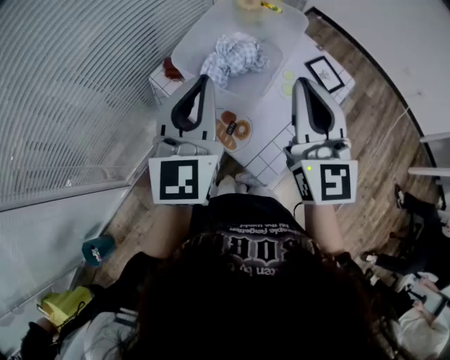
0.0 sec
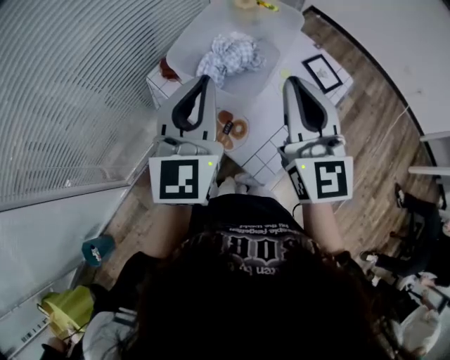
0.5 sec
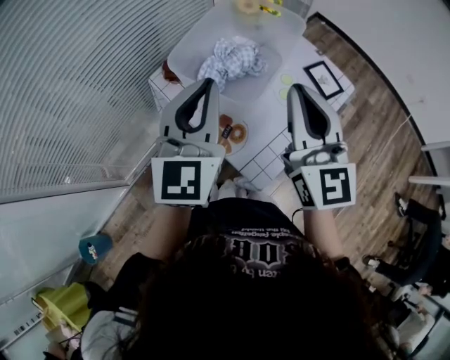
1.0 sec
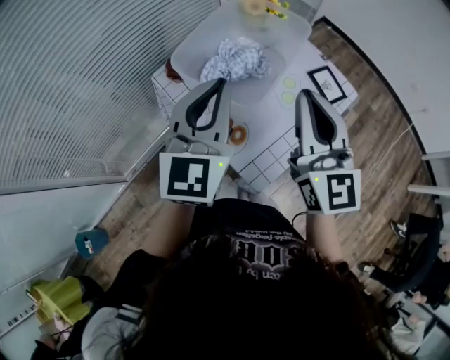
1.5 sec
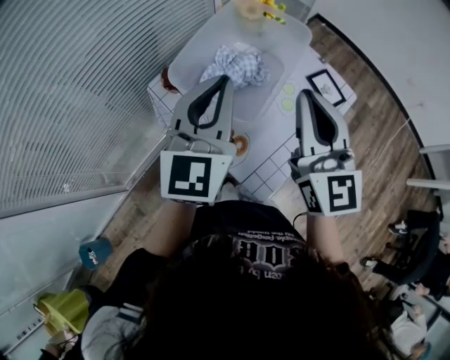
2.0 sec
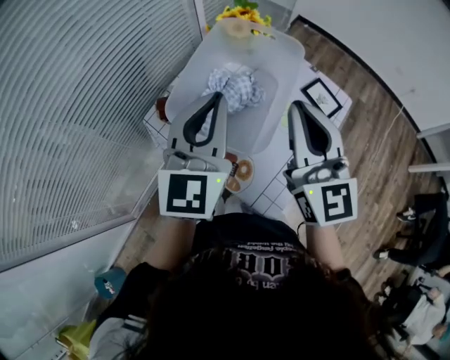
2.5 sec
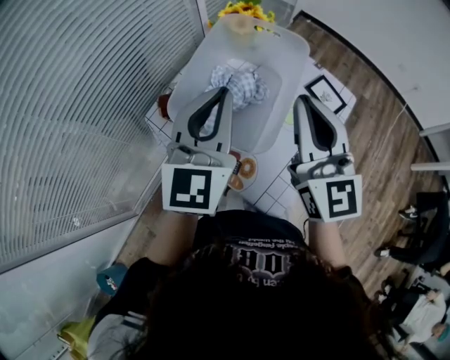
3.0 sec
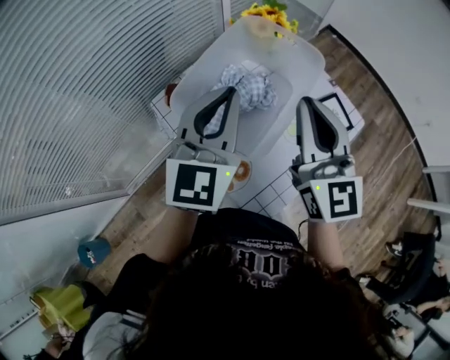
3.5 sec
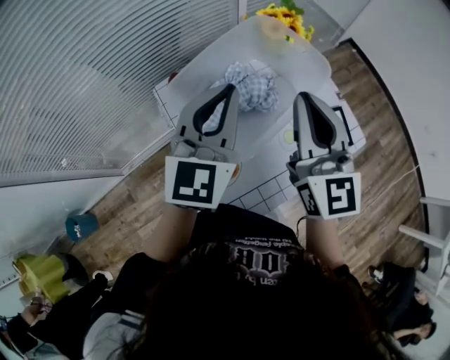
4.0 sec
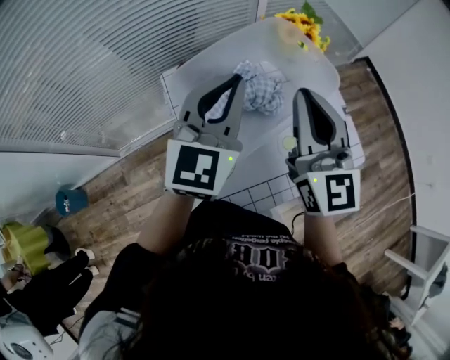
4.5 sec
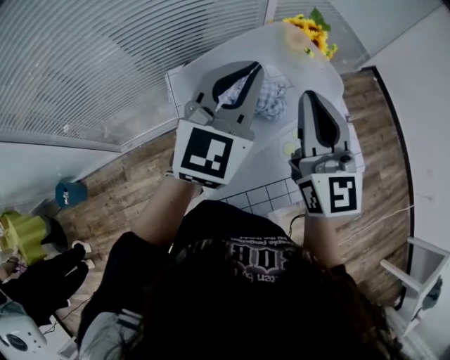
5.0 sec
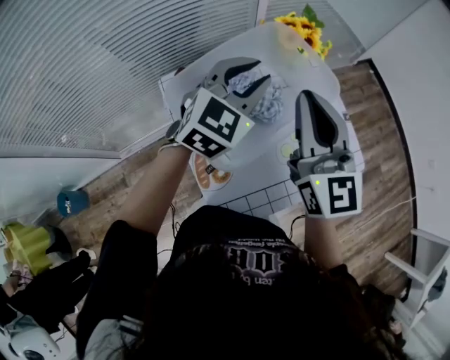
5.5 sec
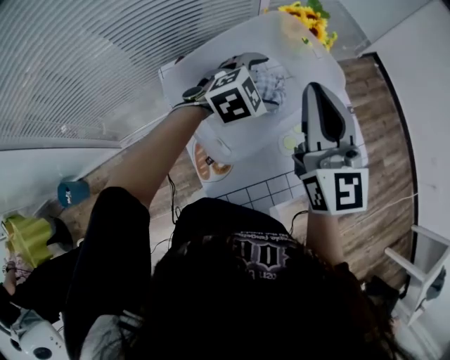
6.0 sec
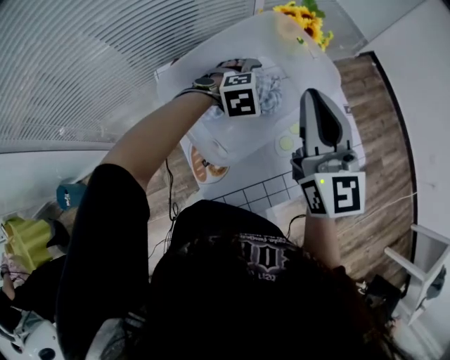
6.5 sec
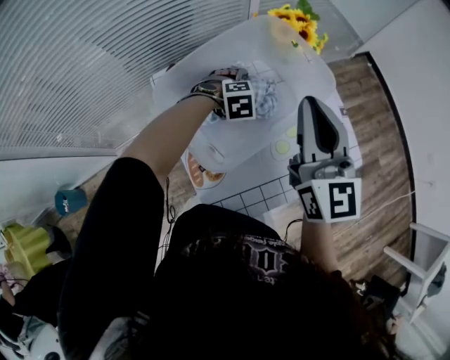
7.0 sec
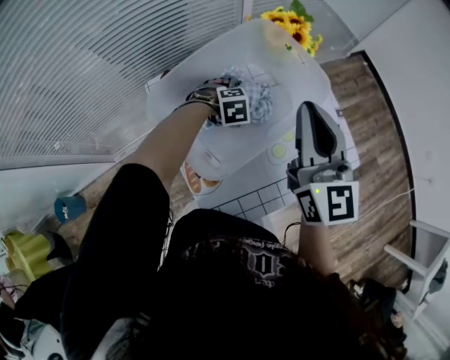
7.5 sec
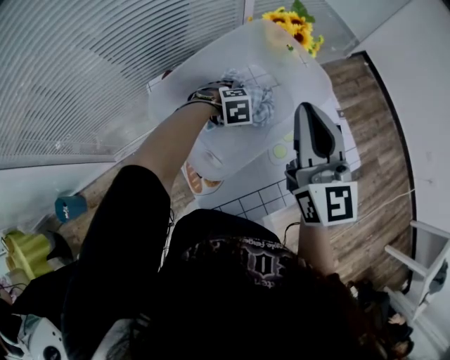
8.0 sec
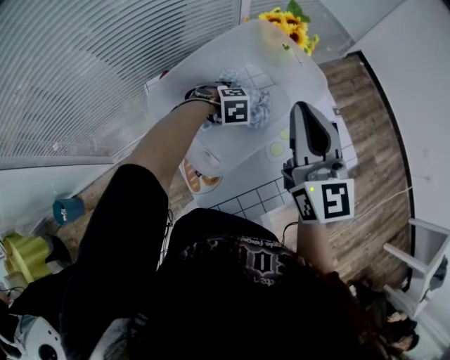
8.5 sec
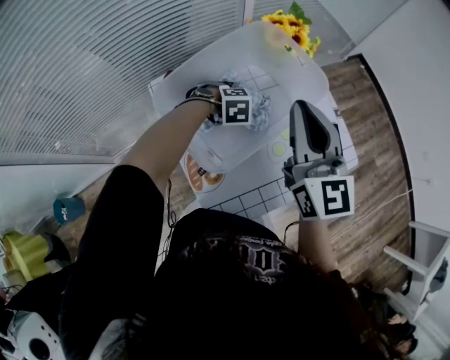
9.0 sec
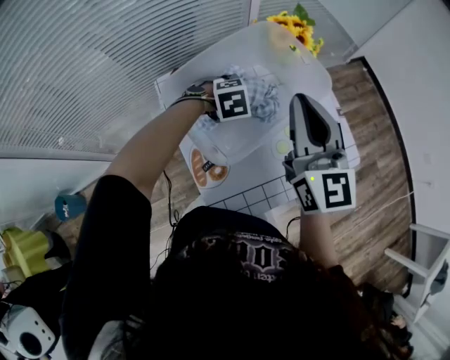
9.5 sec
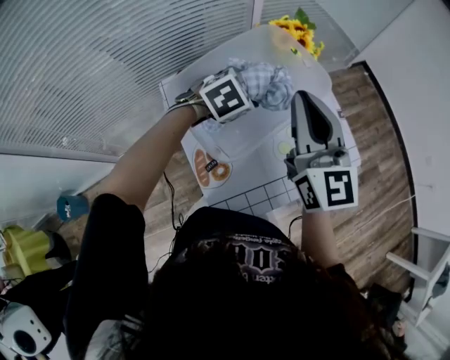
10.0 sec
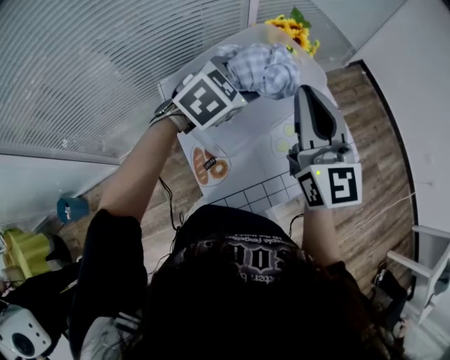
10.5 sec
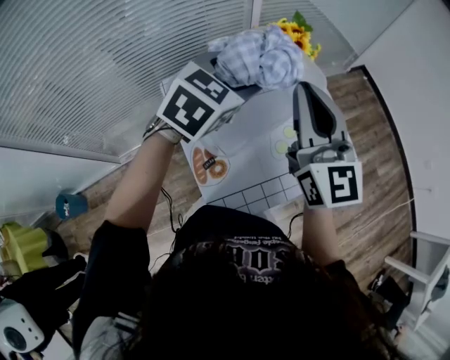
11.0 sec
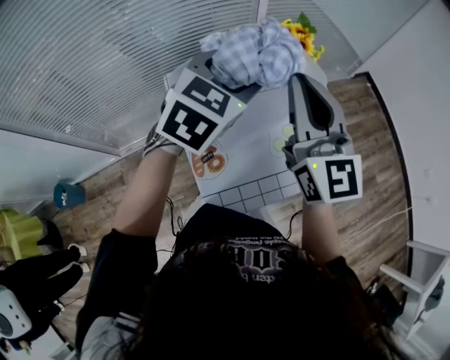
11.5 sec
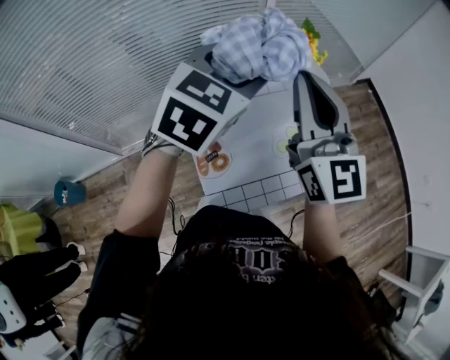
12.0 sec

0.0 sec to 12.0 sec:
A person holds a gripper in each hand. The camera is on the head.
0.0 sec to 2.0 sec: The left gripper moves approximately 5 cm.
2.0 sec to 4.0 sec: The grippers both shift forward by approximately 10 cm.
4.0 sec to 6.0 sec: The left gripper goes some 20 cm downward, forward and to the right, angles its fingers downward, by about 40 degrees, and opens.
6.0 sec to 8.0 sec: The left gripper moves downward, about 15 cm, and angles its fingers downward, by approximately 30 degrees.
8.0 sec to 10.0 sec: The left gripper is displaced upward by roughly 15 cm, and turns by approximately 30 degrees.
10.0 sec to 12.0 sec: The left gripper goes approximately 20 cm upward, and angles its fingers upward, by some 30 degrees. The right gripper shifts about 5 cm upward.

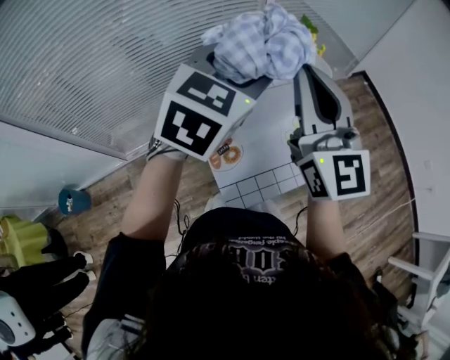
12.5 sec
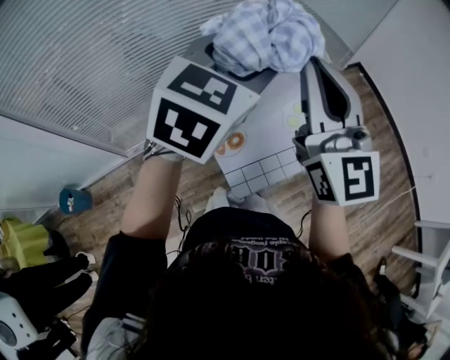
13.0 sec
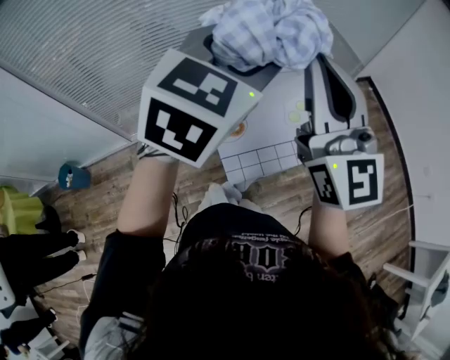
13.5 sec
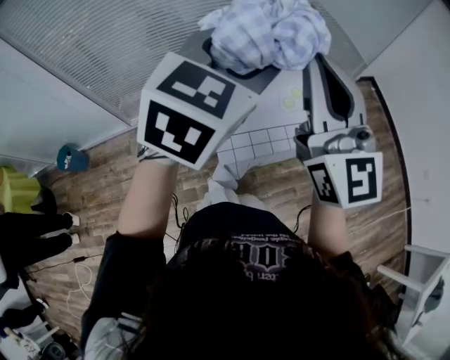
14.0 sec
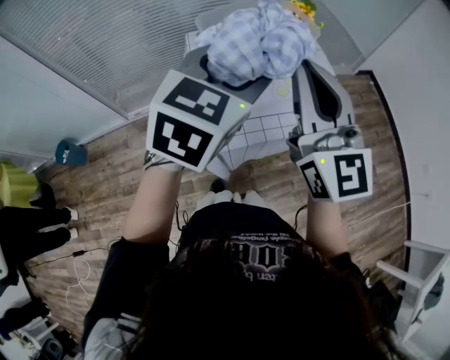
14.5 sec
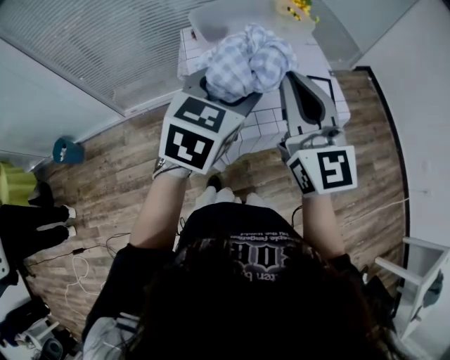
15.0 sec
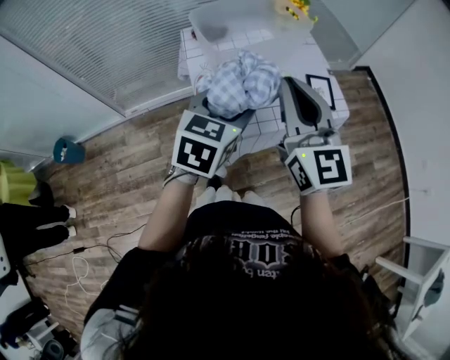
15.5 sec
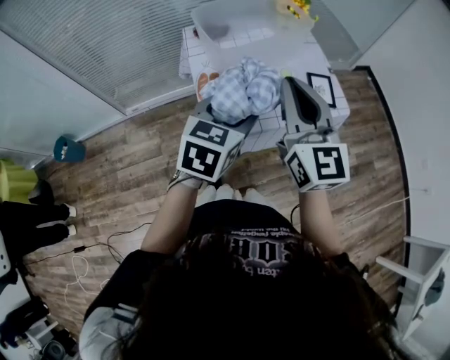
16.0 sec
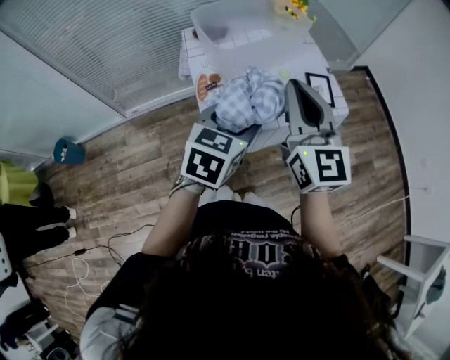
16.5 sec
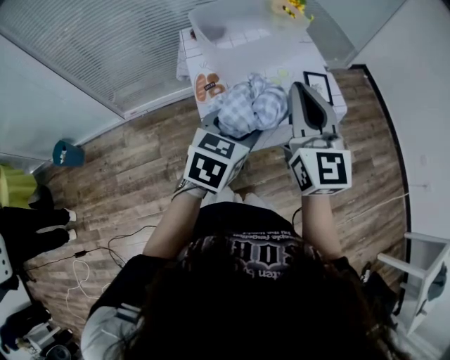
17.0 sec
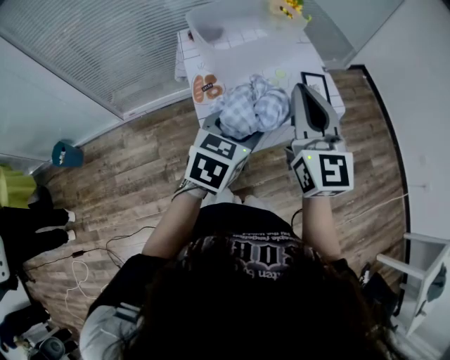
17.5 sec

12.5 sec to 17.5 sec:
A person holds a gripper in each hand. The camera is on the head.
12.5 sec to 15.0 sec: The grippers both shift backward by about 20 cm.
15.0 sec to 17.5 sec: The right gripper shifts some 5 cm to the right. The left gripper travels downward and backward by roughly 10 cm.

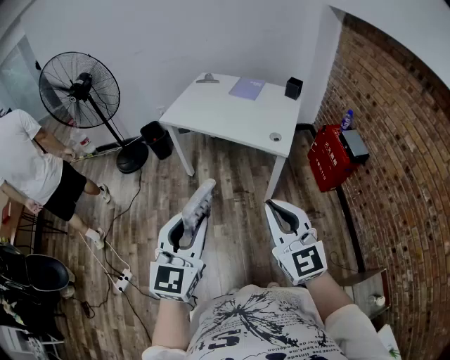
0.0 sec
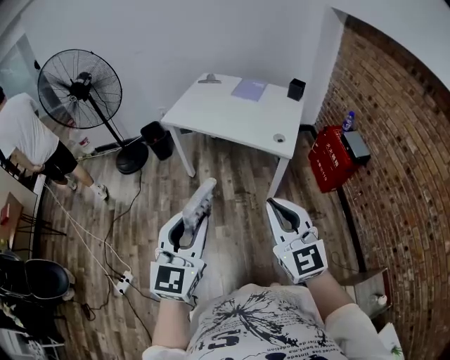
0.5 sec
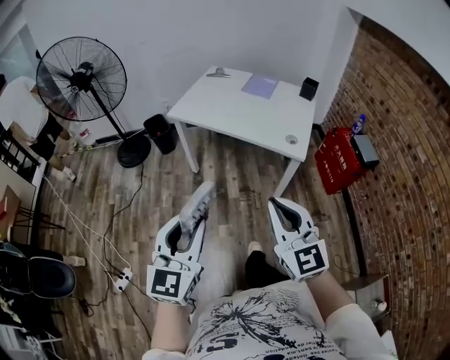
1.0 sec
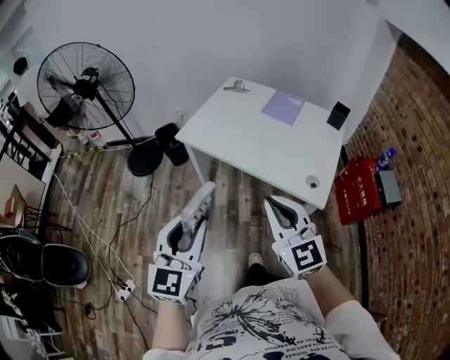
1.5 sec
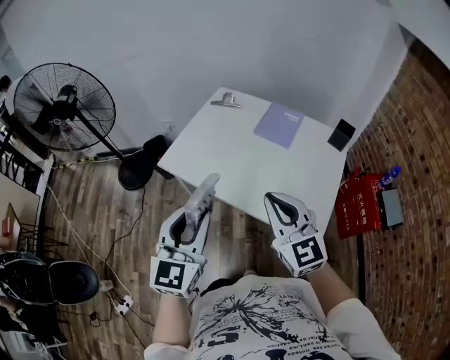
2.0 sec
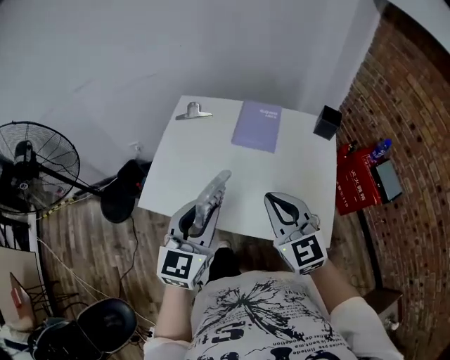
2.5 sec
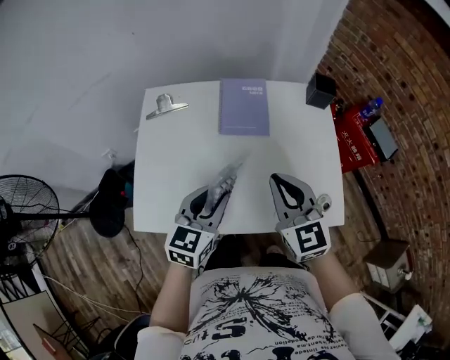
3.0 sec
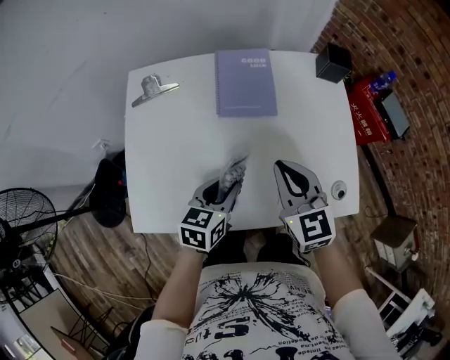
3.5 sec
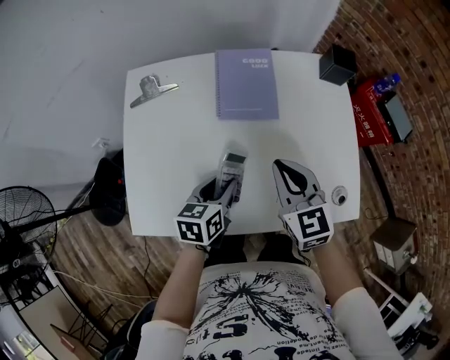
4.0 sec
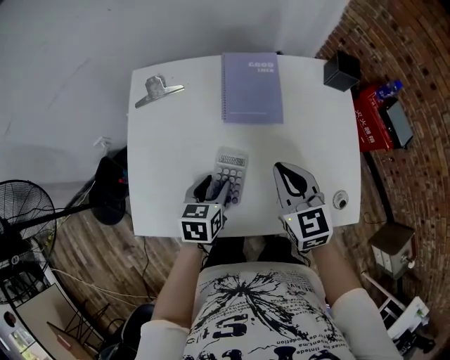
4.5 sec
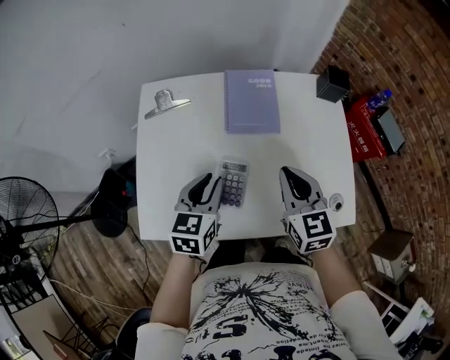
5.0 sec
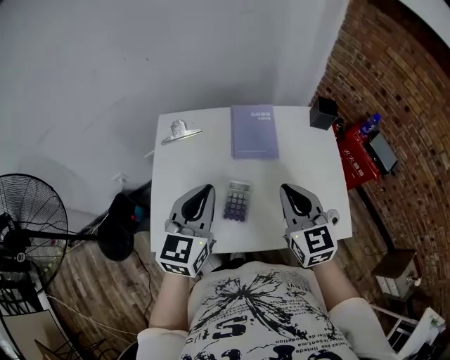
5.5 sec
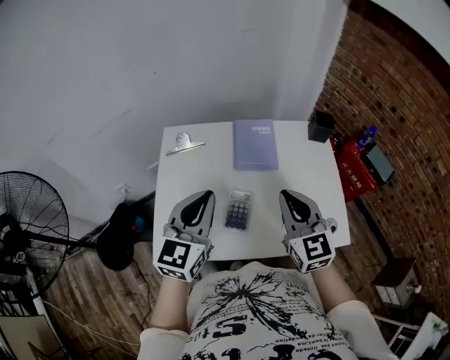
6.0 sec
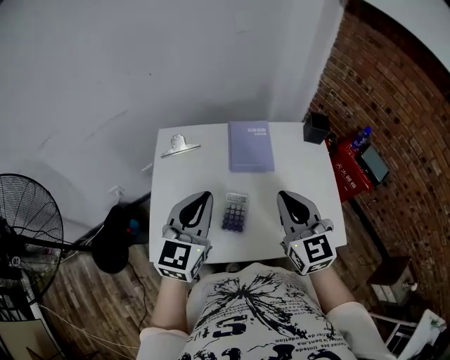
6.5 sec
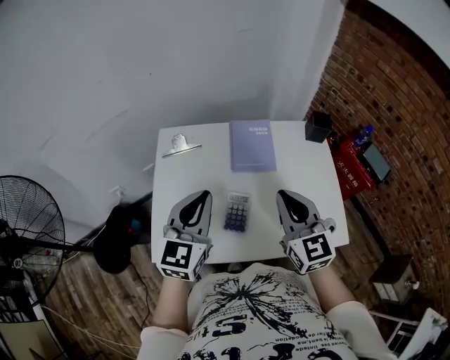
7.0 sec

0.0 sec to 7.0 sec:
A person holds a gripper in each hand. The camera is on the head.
0.0 sec to 2.0 sec: The two grippers travel together, forward, some 60 cm.
2.0 sec to 3.5 sec: The left gripper moves approximately 40 cm, and turns by roughly 60 degrees. Meanwhile the right gripper changes place by roughly 35 cm, and changes its angle by roughly 40 degrees.
3.5 sec to 5.0 sec: The left gripper travels upward and to the left by approximately 10 cm.
5.0 sec to 7.0 sec: The right gripper moves upward and backward, roughly 15 cm. Meanwhile the left gripper shifts approximately 15 cm upward, turns by some 30 degrees, and closes.

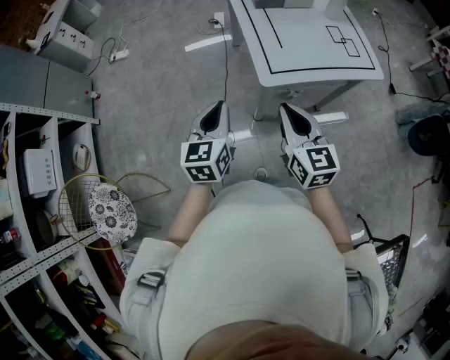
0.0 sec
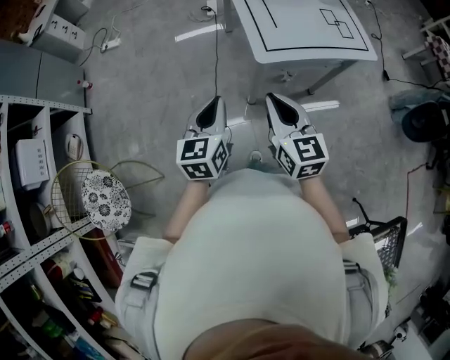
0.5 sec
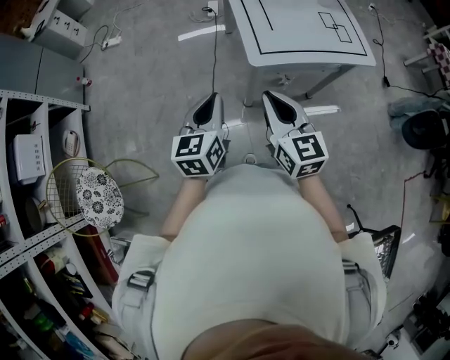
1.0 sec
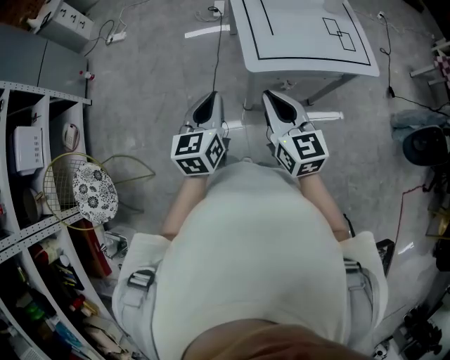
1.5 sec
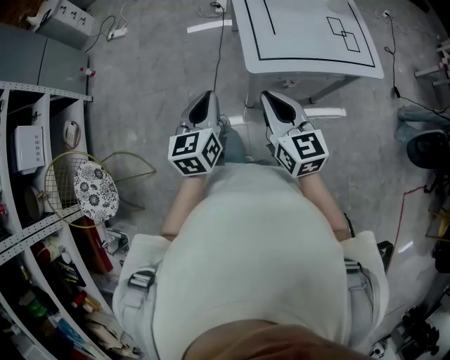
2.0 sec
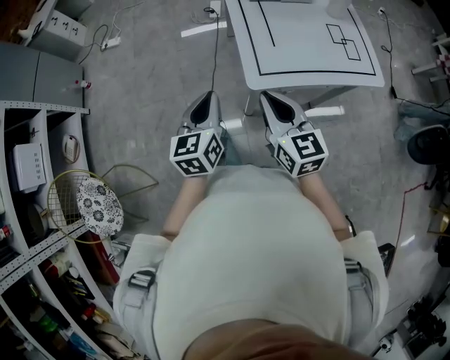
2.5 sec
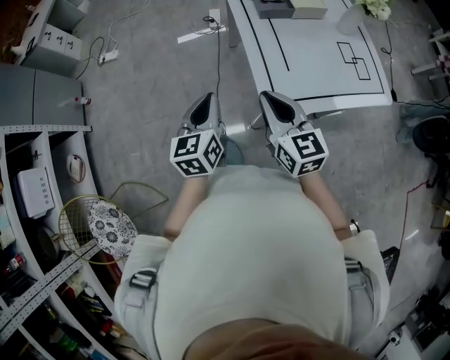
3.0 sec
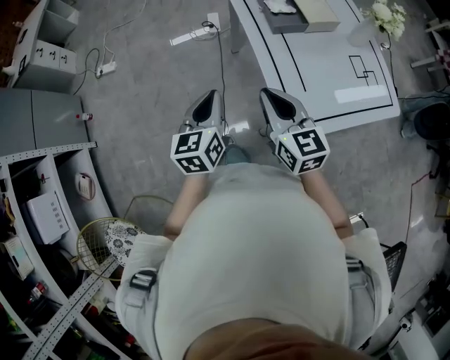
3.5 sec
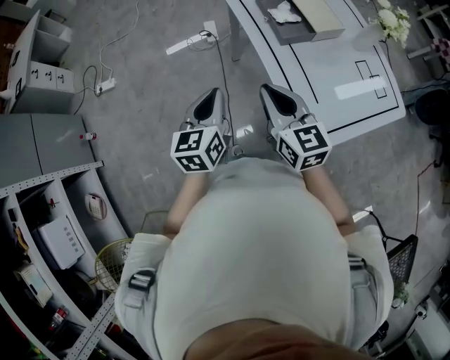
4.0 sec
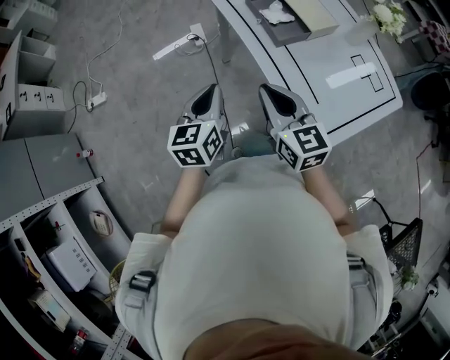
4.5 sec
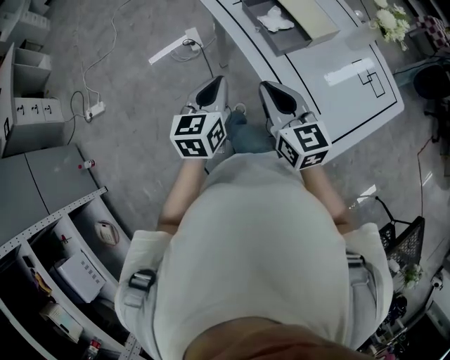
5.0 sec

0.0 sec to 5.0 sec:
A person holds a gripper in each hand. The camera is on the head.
0.0 sec to 2.5 sec: Both grippers move forward, approximately 5 cm.
2.5 sec to 5.0 sec: The right gripper is displaced forward and to the left by roughly 35 cm. The left gripper travels forward by roughly 40 cm, and changes its angle by some 30 degrees.
